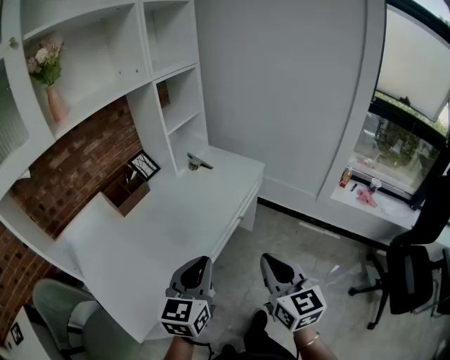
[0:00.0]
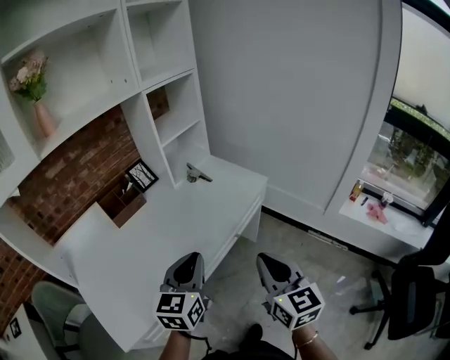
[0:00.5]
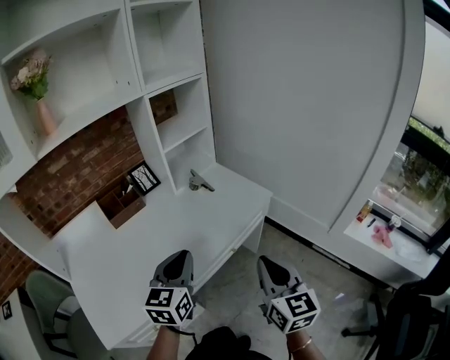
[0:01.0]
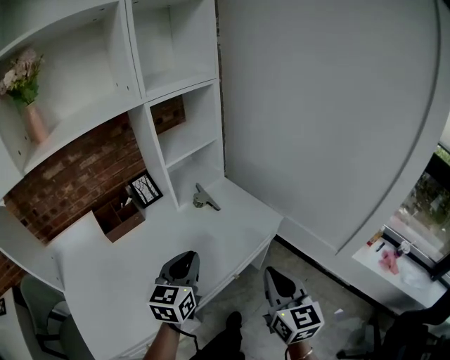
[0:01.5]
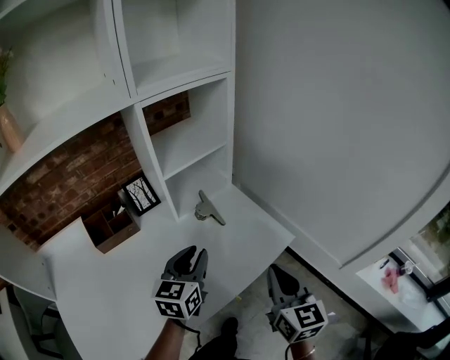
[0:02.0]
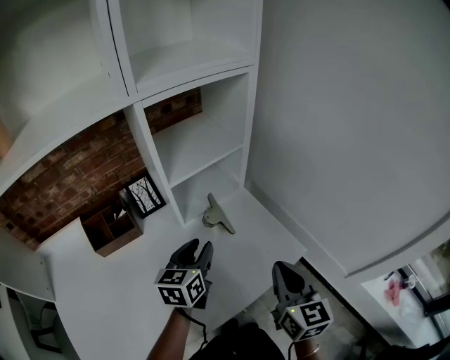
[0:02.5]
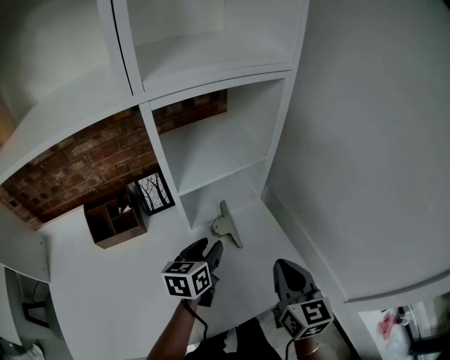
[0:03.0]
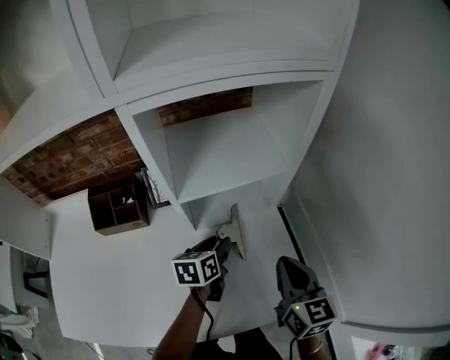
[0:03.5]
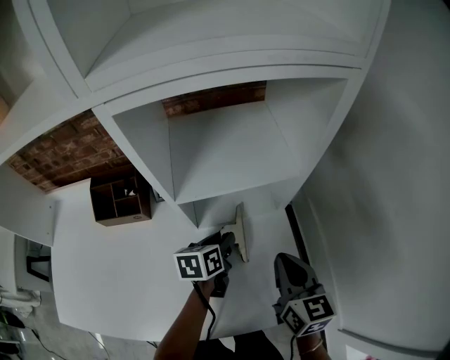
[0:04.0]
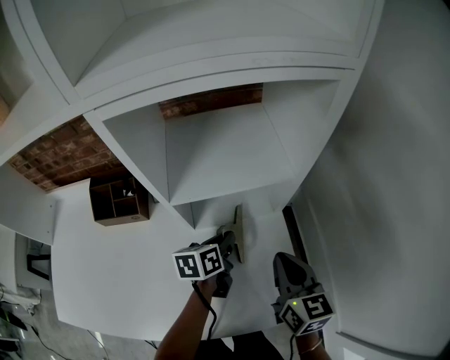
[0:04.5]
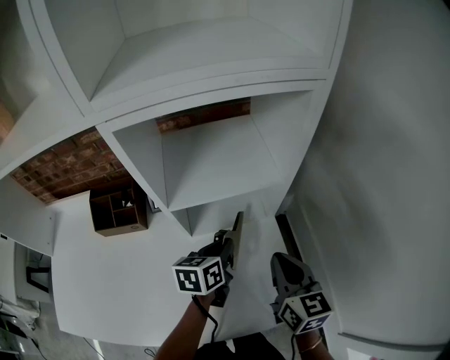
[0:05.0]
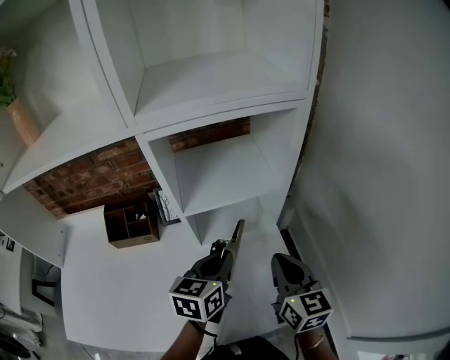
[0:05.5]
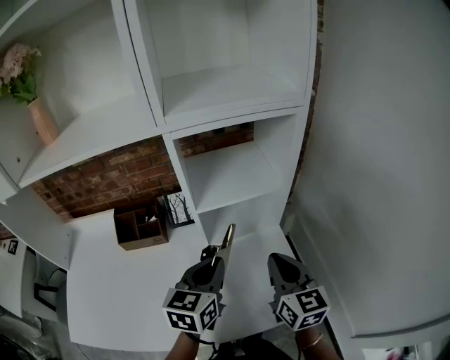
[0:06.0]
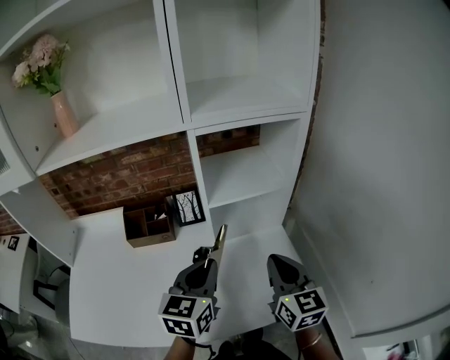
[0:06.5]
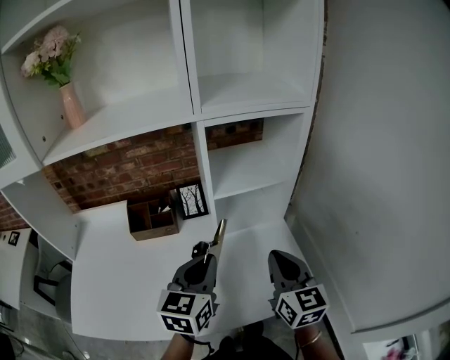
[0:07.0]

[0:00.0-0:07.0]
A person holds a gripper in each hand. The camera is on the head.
0:00.0 to 0:02.0: Both grippers travel together forward, about 40 cm.
0:02.0 to 0:03.5: The left gripper moves forward and downward, roughly 25 cm, and turns by approximately 40 degrees, while the right gripper heads forward, covering some 25 cm, and rotates some 20 degrees.
0:03.5 to 0:05.0: The left gripper ends up some 5 cm from where it was, and closes.
0:05.0 to 0:07.0: The right gripper goes some 15 cm backward, upward and to the left; the left gripper is displaced upward, backward and to the left by some 25 cm, and turns by about 30 degrees.

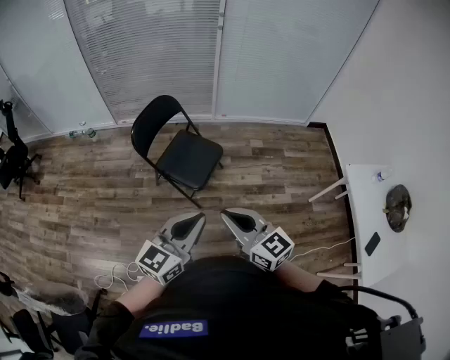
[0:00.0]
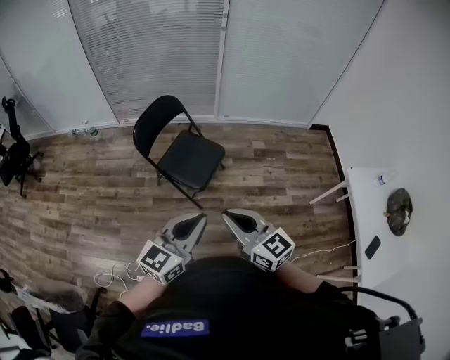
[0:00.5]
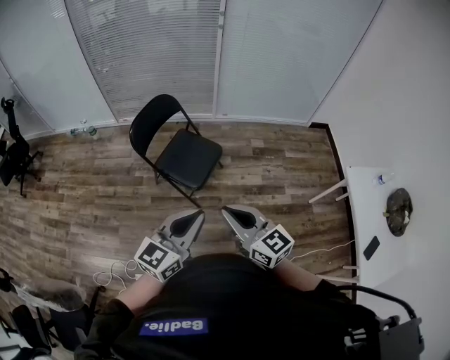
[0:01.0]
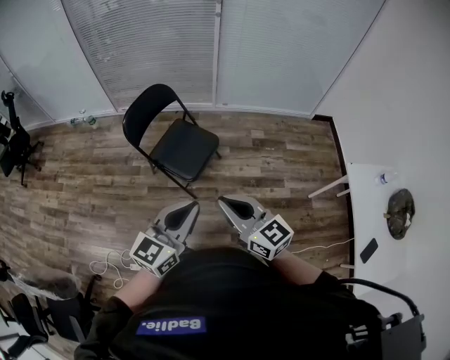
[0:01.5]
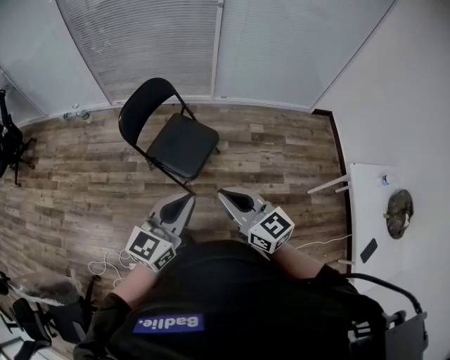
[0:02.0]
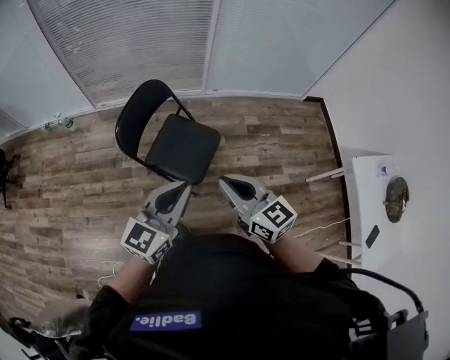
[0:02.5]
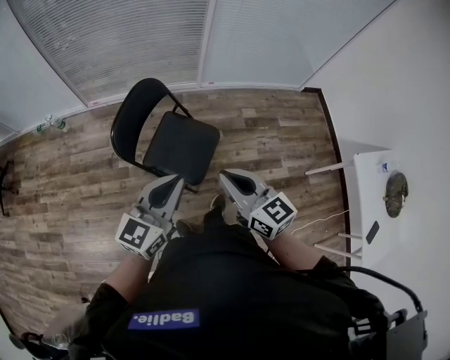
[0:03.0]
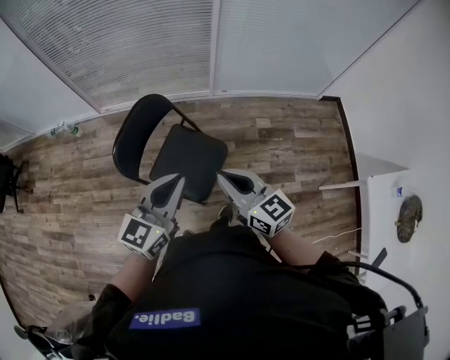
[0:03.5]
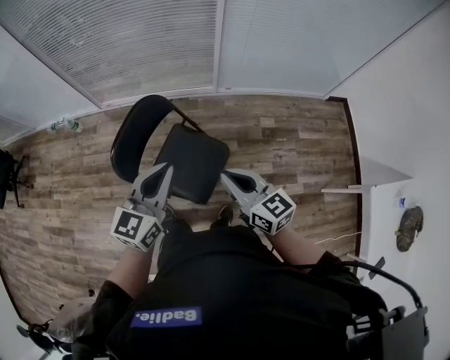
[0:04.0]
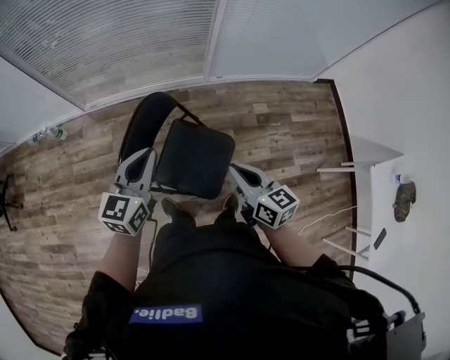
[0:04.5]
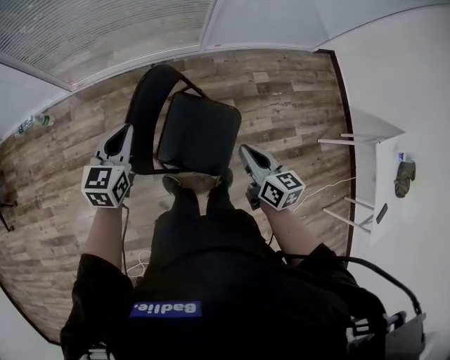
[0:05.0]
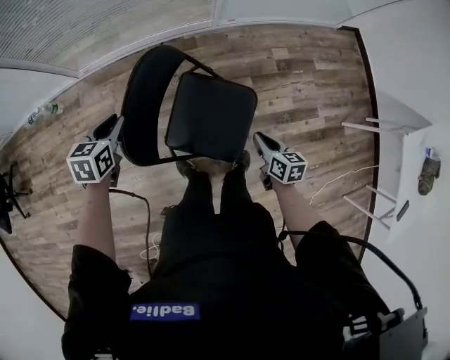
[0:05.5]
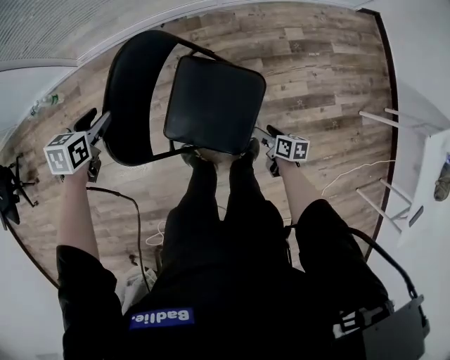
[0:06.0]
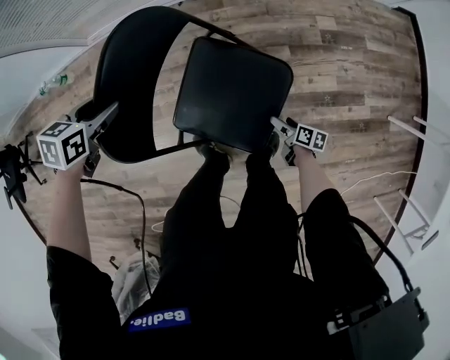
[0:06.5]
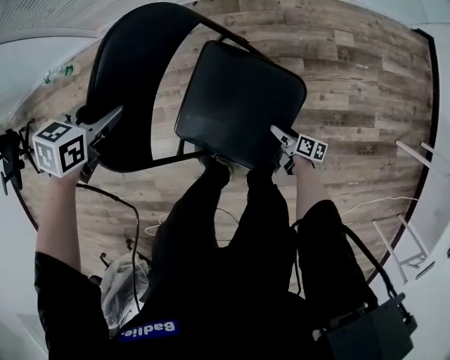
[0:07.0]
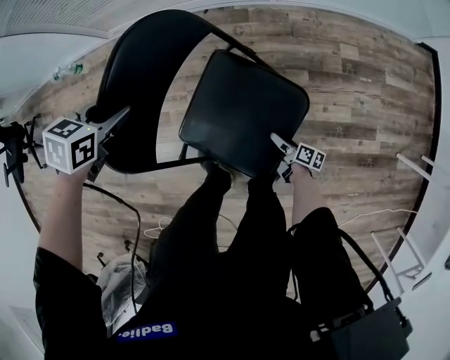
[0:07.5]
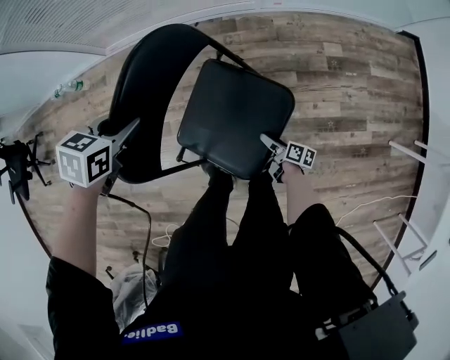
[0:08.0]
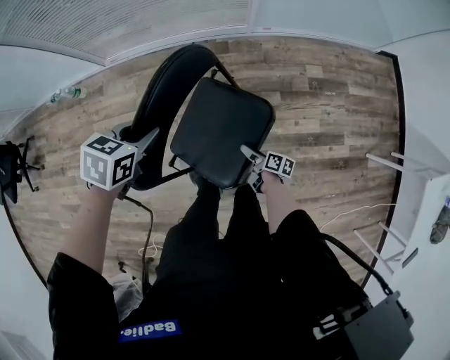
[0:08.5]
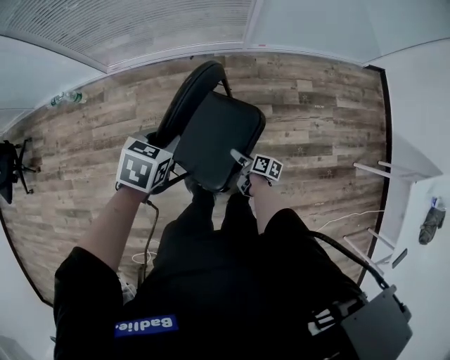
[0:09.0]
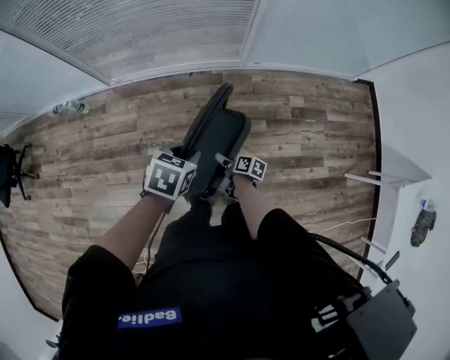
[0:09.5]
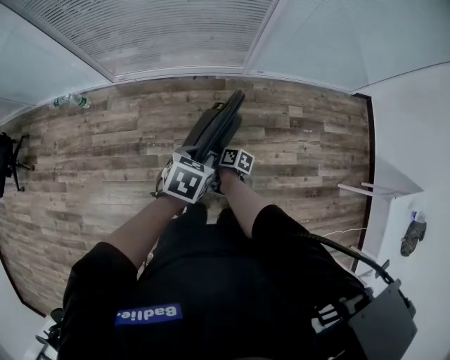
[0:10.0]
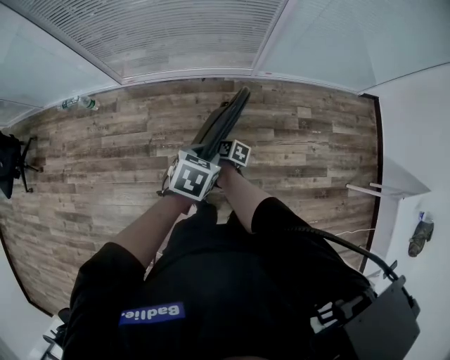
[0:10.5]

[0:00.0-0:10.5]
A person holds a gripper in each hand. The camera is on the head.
0:00.0 to 0:02.0: The left gripper shifts roughly 10 cm forward. Meanwhile the right gripper is displaced forward and to the right by about 10 cm.
0:02.0 to 0:04.0: The grippers both shift forward by approximately 40 cm.
0:04.0 to 0:06.5: The left gripper goes roughly 50 cm downward, to the left and forward, tilts its fingers approximately 50 degrees downward, and opens, while the right gripper heads downward, covering roughly 60 cm, rotates around the line of its fingers by some 60 degrees, clockwise from behind, and opens.
0:06.5 to 0:08.5: The right gripper heads upward and to the left, covering roughly 15 cm, while the left gripper goes approximately 15 cm upward and to the right, and closes.
0:08.5 to 0:10.5: The right gripper moves to the left, upward and forward, some 30 cm. The left gripper travels upward by some 10 cm.

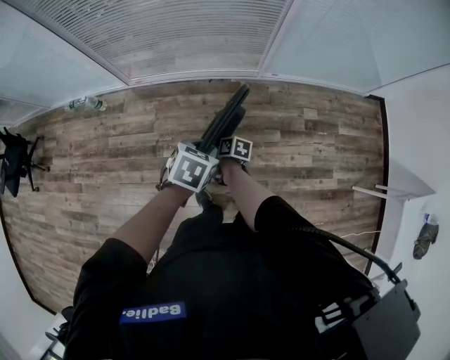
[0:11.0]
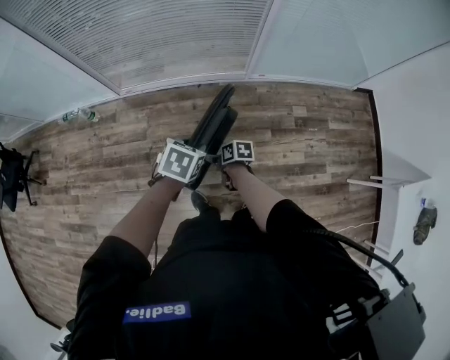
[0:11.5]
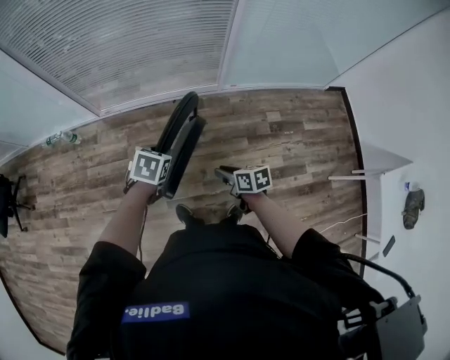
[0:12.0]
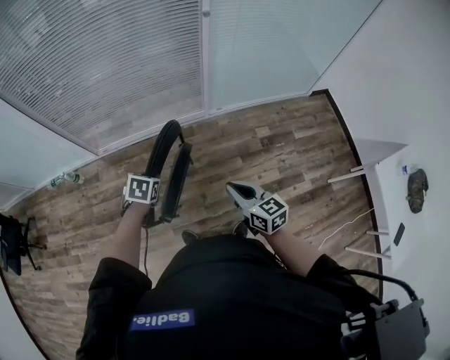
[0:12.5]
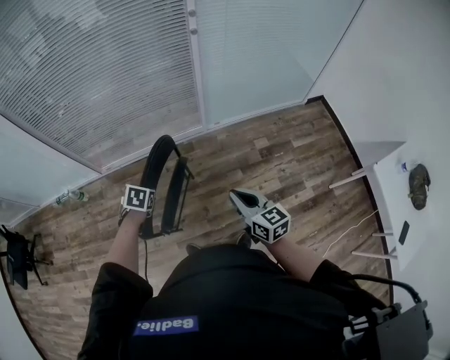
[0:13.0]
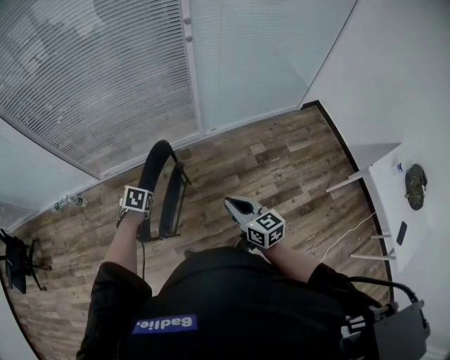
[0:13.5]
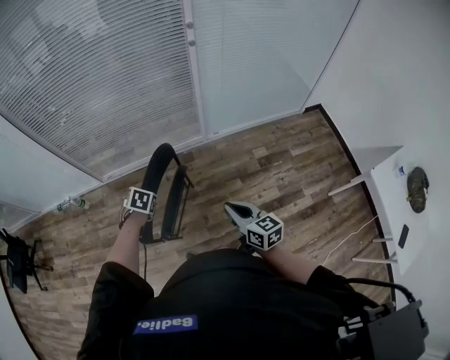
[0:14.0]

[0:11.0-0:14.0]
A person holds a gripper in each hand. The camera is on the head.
0:11.0 to 0:12.5: The right gripper heads upward, to the right and backward, covering approximately 35 cm, swivels about 60 degrees, and closes its fingers.
0:12.5 to 0:14.0: The grippers move only a little.

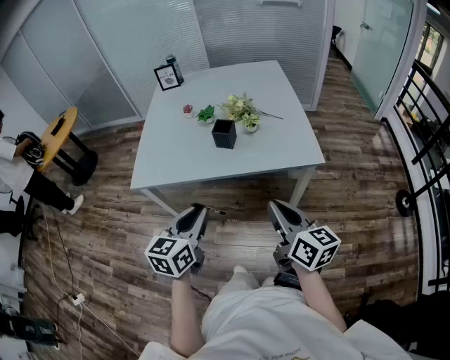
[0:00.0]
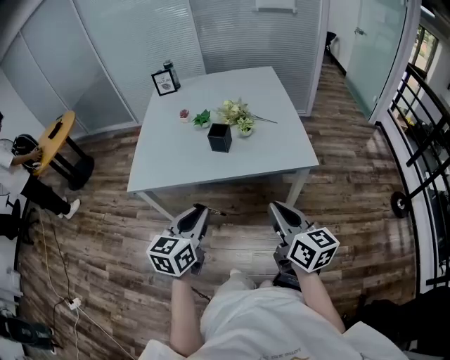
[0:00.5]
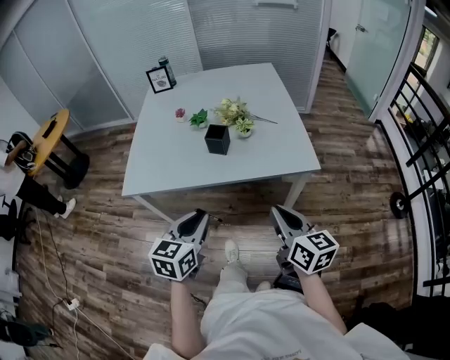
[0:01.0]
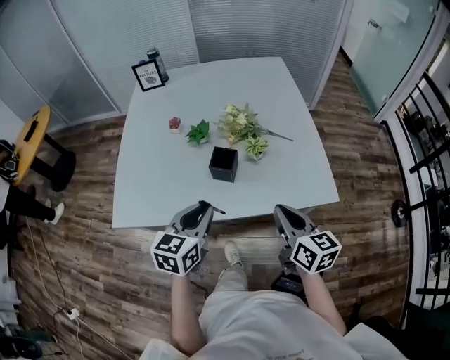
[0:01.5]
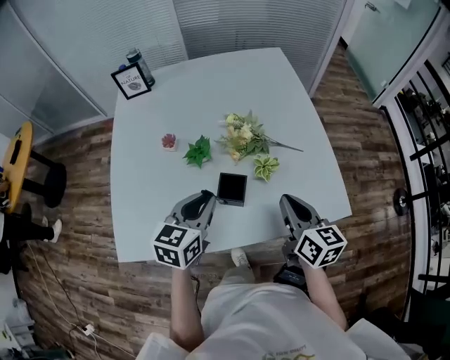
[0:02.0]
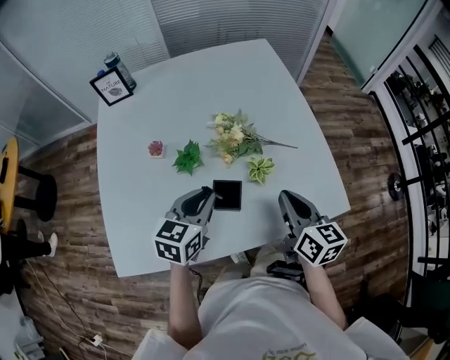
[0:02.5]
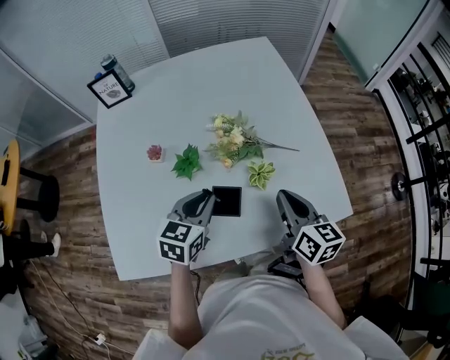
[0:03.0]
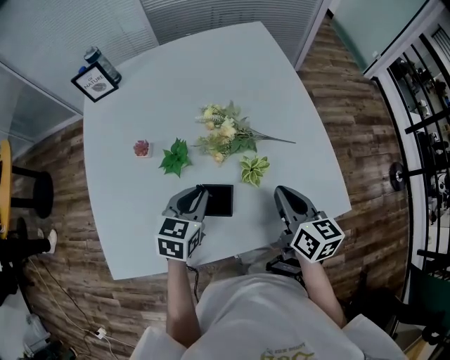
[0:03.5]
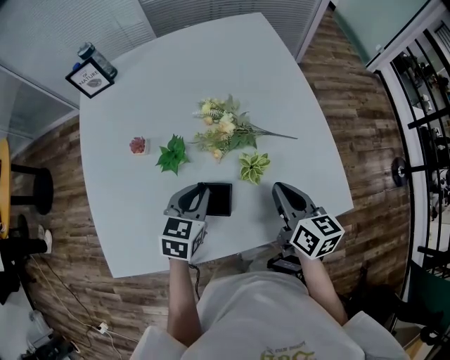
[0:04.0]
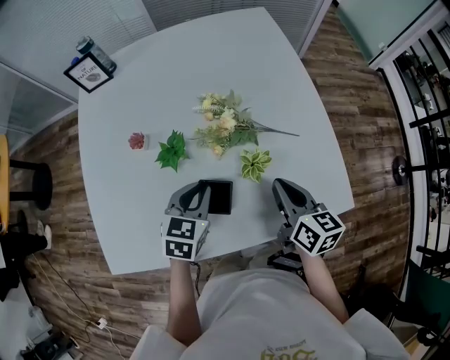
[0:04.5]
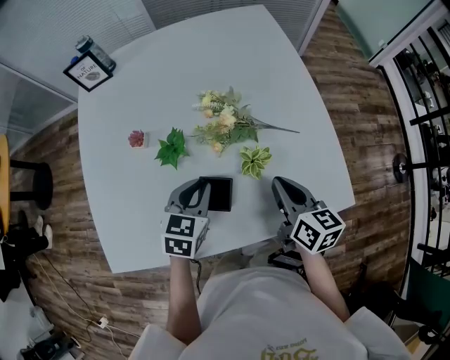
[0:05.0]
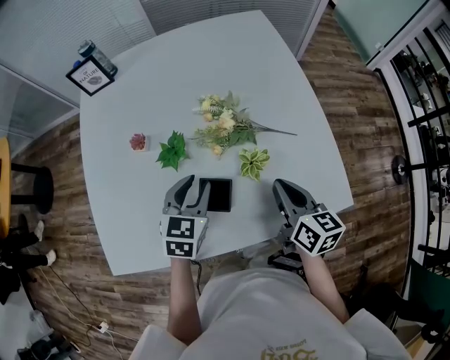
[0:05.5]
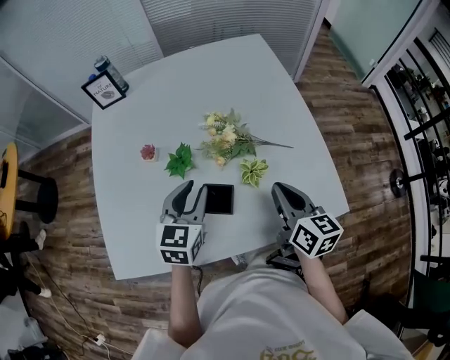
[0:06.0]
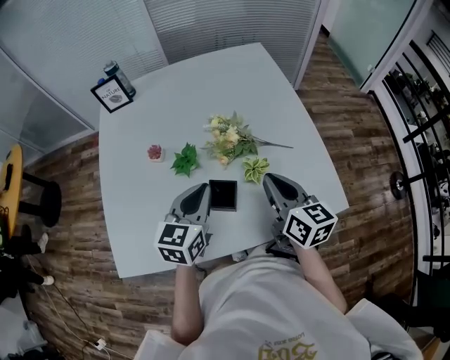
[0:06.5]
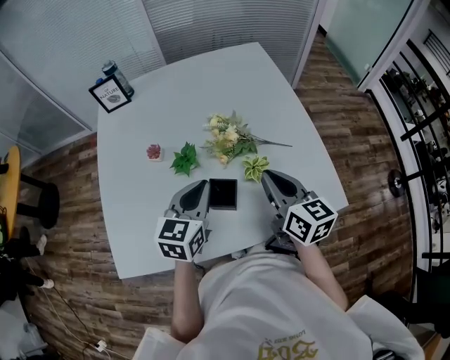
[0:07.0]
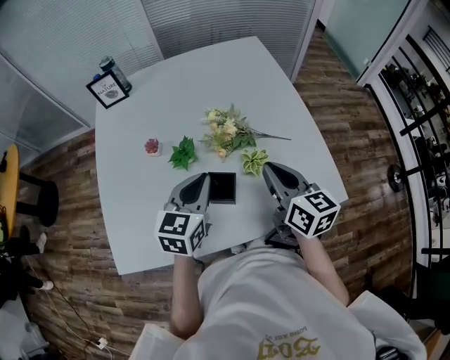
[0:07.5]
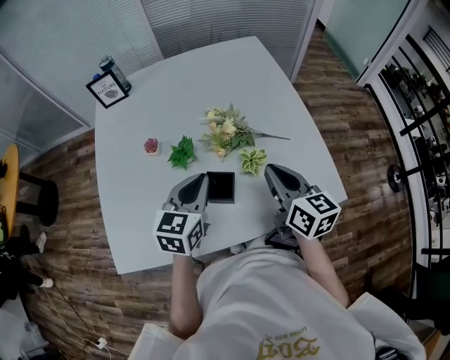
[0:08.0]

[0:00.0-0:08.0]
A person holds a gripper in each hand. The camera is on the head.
0:00.0 to 0:02.0: Both grippers move forward, some 40 cm.
0:02.0 to 0:04.0: The left gripper moves downward and forward, approximately 15 cm. Meanwhile the right gripper travels forward and downward by roughly 10 cm.
0:04.0 to 0:06.0: The left gripper is displaced upward by some 10 cm.
0:06.0 to 0:08.0: The left gripper closes its fingers.
